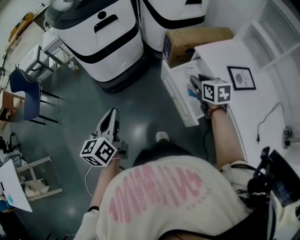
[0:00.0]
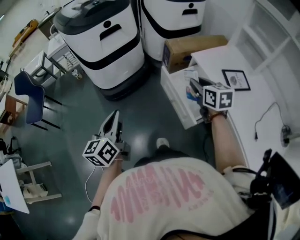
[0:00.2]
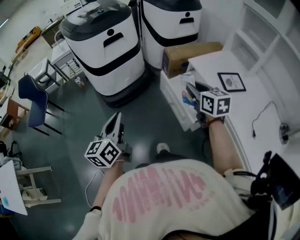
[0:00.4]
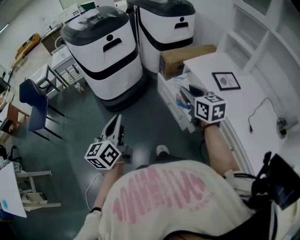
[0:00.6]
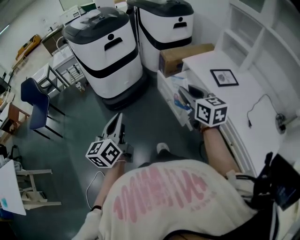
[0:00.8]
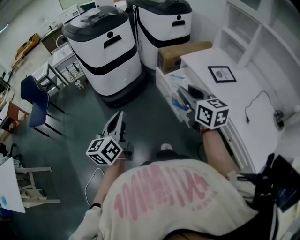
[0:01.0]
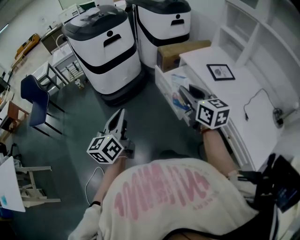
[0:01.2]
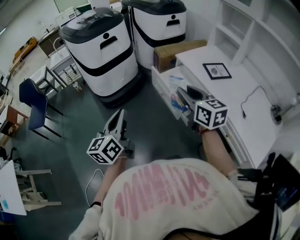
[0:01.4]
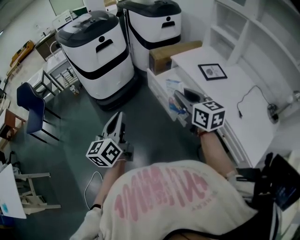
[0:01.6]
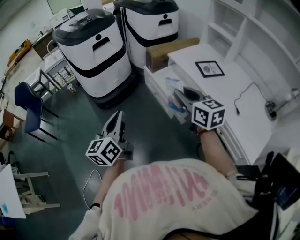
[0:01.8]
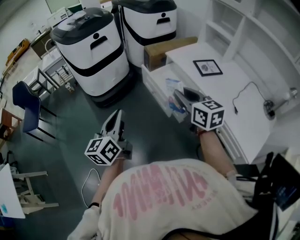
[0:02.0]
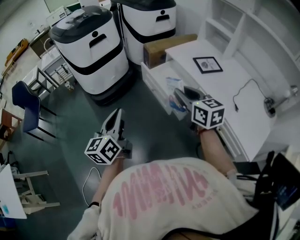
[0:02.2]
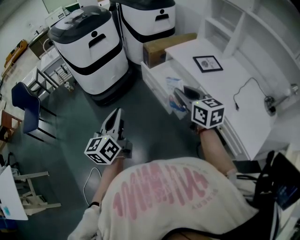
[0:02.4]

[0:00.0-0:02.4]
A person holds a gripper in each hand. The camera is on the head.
0:00.0 to 0:01.2: The right gripper goes about 30 cm backward and upward, and changes its angle by some 30 degrees, while the left gripper heads backward and upward, covering approximately 15 cm.
0:01.2 to 0:02.4: The grippers stay close to where they were, moving slightly.

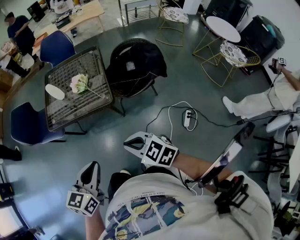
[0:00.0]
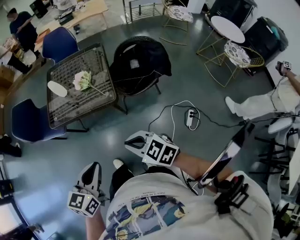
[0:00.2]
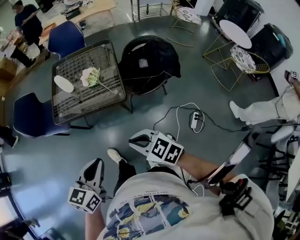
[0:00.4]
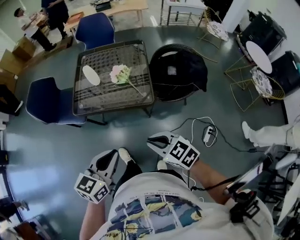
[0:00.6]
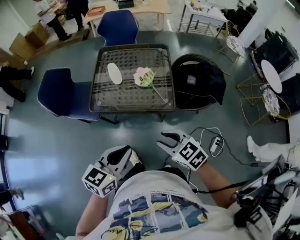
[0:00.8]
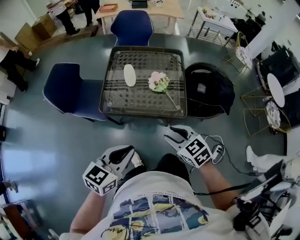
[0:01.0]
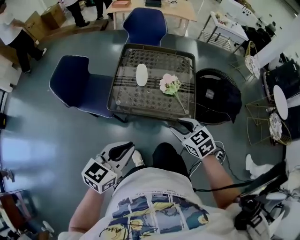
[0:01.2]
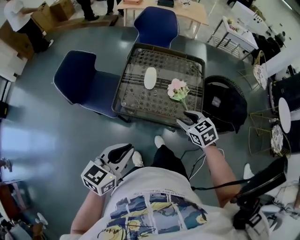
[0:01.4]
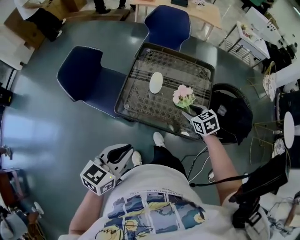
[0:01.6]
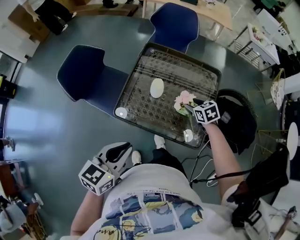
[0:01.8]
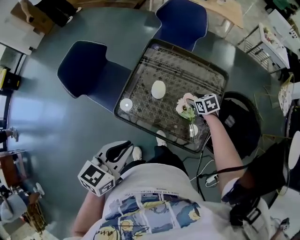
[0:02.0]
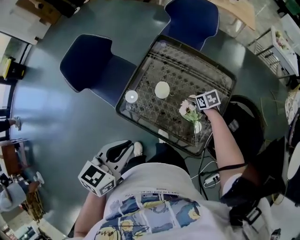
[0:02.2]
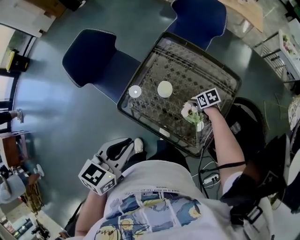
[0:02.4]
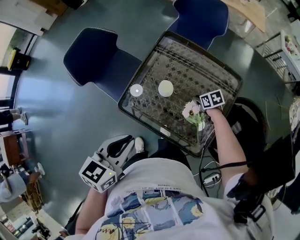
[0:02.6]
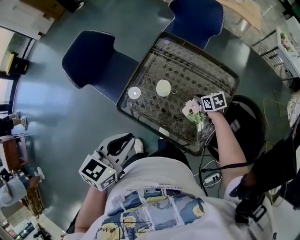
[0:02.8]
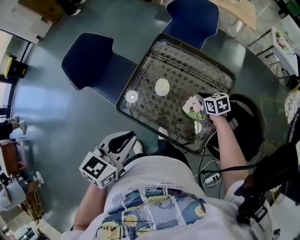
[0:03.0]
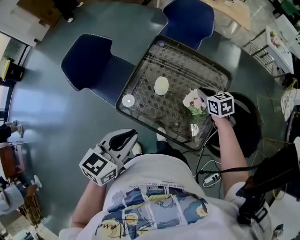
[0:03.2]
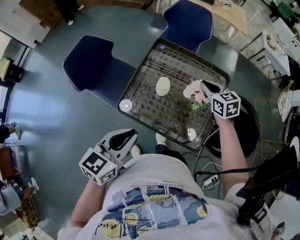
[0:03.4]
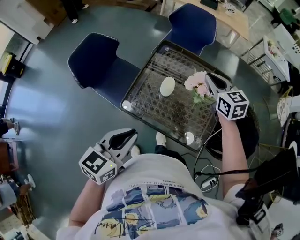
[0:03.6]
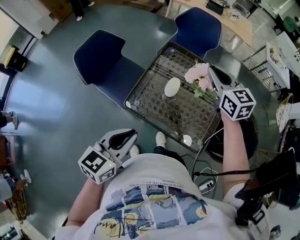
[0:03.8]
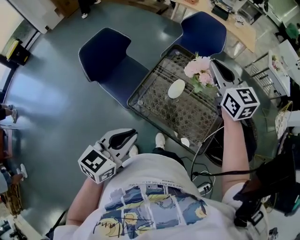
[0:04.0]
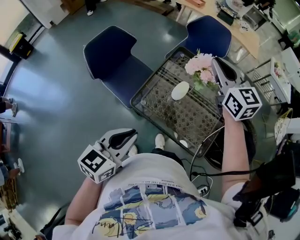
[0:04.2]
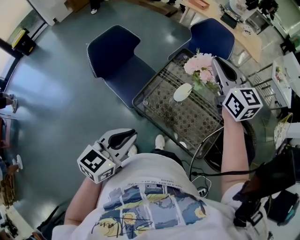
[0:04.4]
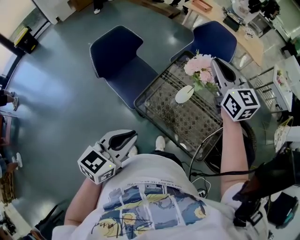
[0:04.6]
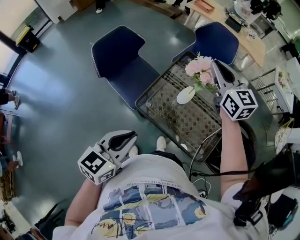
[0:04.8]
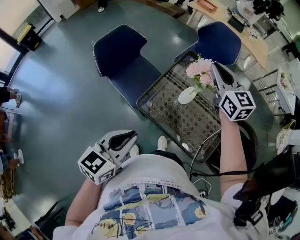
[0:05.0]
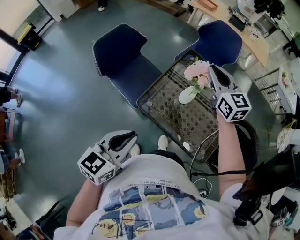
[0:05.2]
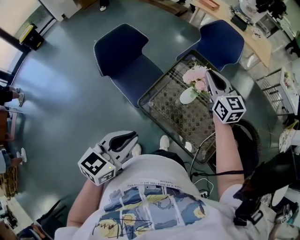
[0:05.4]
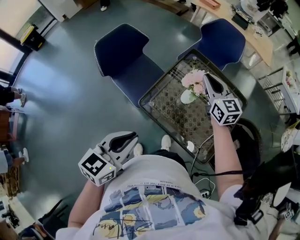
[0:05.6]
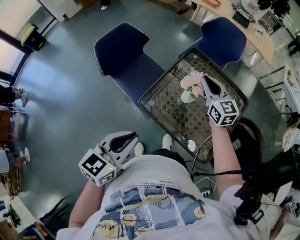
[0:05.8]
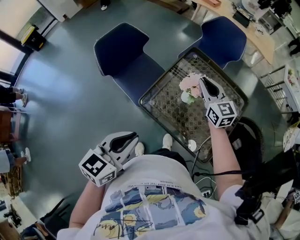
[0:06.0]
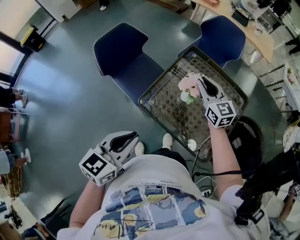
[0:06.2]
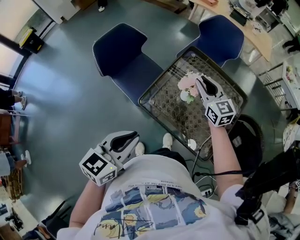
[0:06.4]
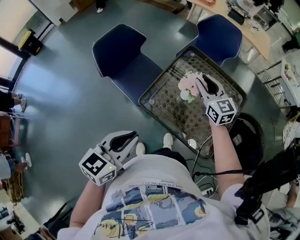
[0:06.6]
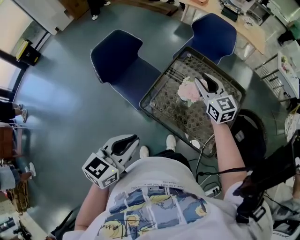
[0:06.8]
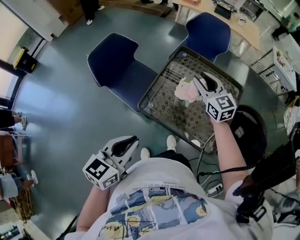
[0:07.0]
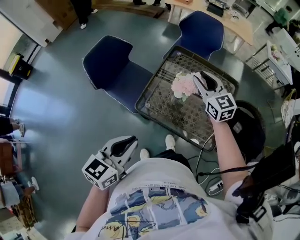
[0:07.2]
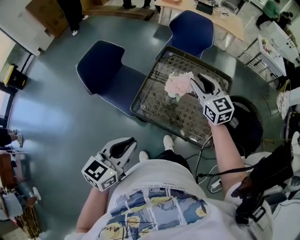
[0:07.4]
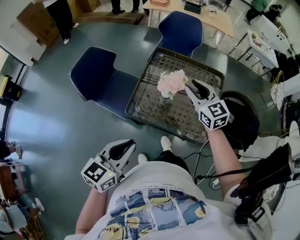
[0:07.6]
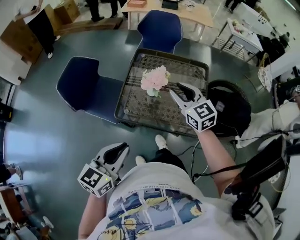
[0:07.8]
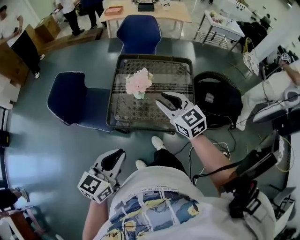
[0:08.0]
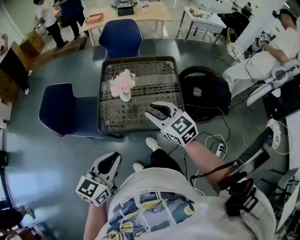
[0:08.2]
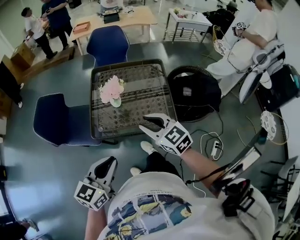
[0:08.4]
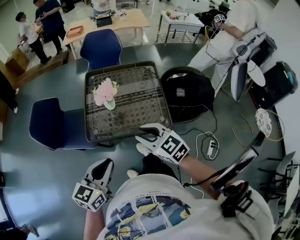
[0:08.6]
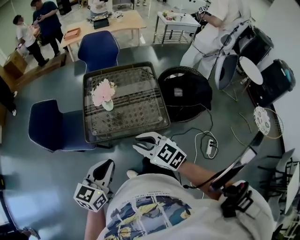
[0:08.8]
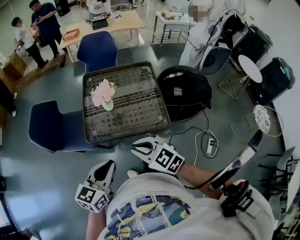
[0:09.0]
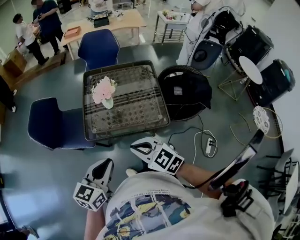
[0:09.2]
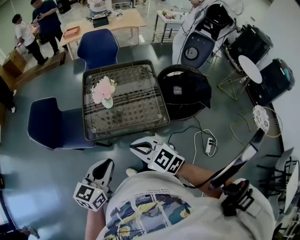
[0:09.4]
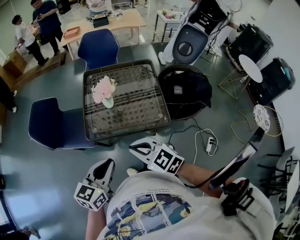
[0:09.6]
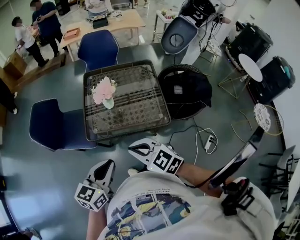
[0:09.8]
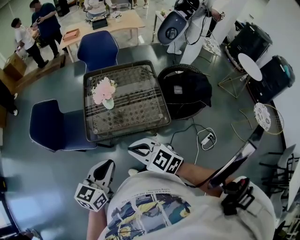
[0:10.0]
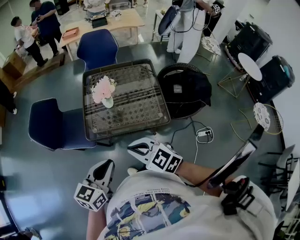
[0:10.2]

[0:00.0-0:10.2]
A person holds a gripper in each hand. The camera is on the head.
0:00.0 to 0:01.4: The left gripper heads to the left and forward, covering some 35 cm. Meanwhile the right gripper travels forward and to the left by approximately 40 cm, and opens its fingers.
0:01.4 to 0:03.0: The right gripper moves about 30 cm, and closes up; the left gripper moves about 20 cm.
0:03.0 to 0:04.4: The left gripper travels to the left and backward by some 10 cm, while the right gripper shifts roughly 40 cm upward and to the left, and tilts its fingers approximately 40 degrees upward.
0:04.4 to 0:05.8: The right gripper is displaced downward by about 15 cm.
0:05.8 to 0:07.2: The right gripper changes place by approximately 5 cm.
0:07.2 to 0:08.8: The left gripper shifts some 10 cm to the right, and turns by about 30 degrees. The right gripper goes approximately 30 cm backward.
0:08.8 to 0:10.2: The right gripper shifts by roughly 5 cm.

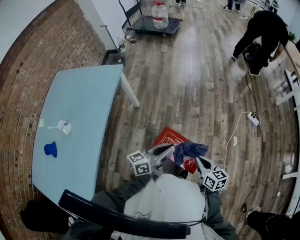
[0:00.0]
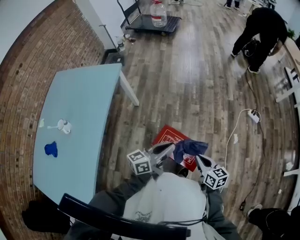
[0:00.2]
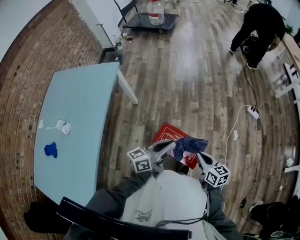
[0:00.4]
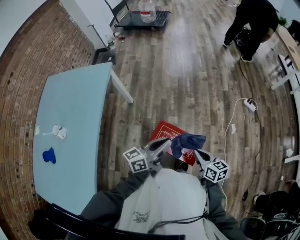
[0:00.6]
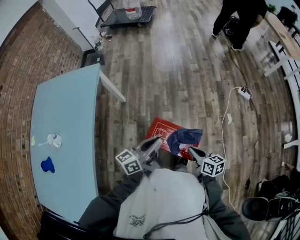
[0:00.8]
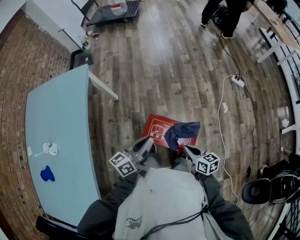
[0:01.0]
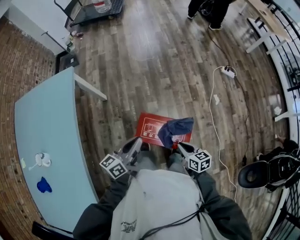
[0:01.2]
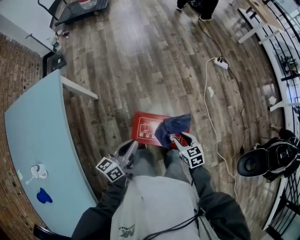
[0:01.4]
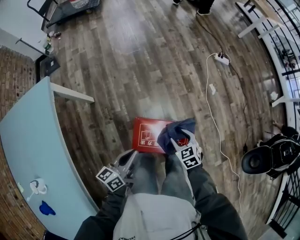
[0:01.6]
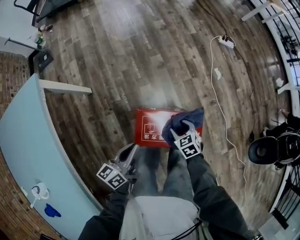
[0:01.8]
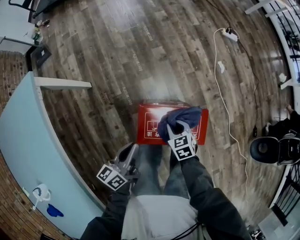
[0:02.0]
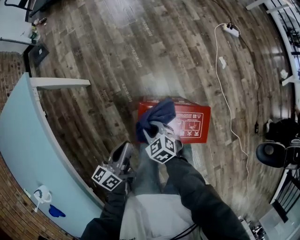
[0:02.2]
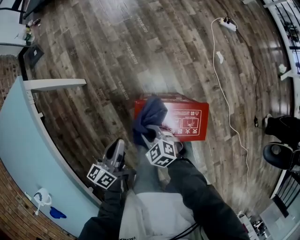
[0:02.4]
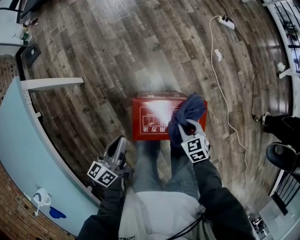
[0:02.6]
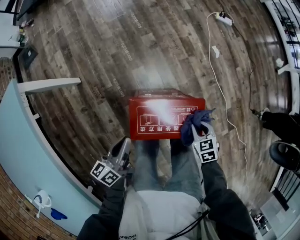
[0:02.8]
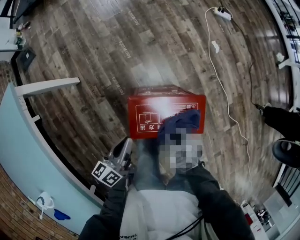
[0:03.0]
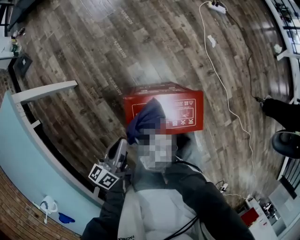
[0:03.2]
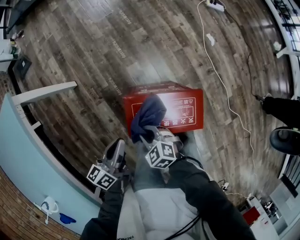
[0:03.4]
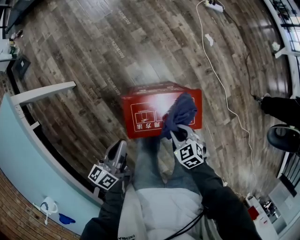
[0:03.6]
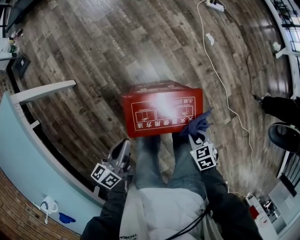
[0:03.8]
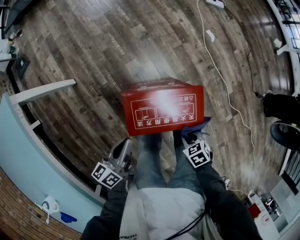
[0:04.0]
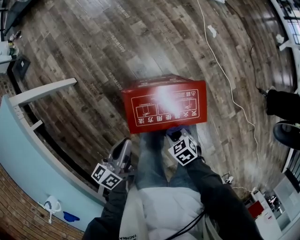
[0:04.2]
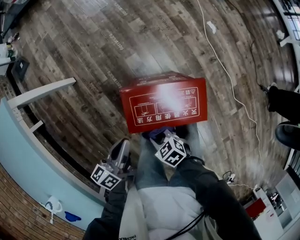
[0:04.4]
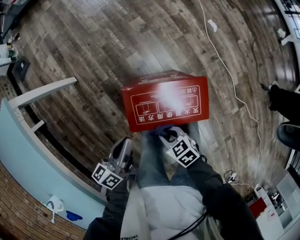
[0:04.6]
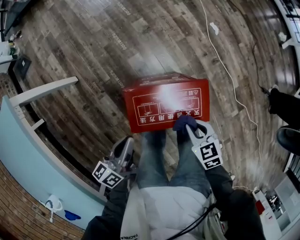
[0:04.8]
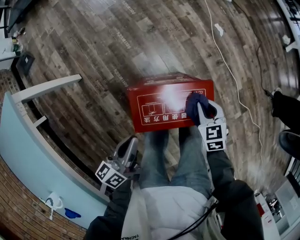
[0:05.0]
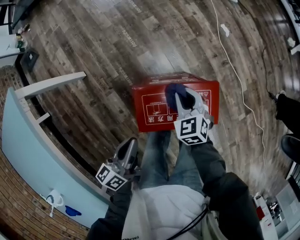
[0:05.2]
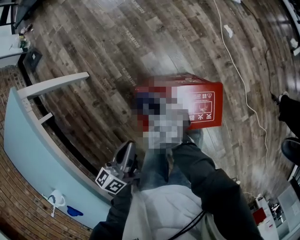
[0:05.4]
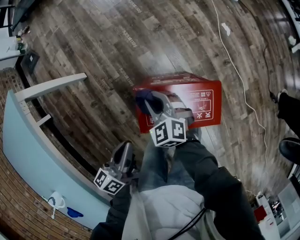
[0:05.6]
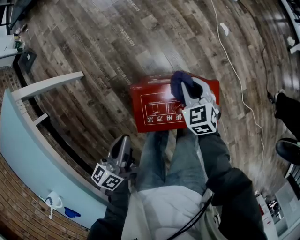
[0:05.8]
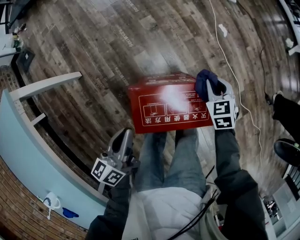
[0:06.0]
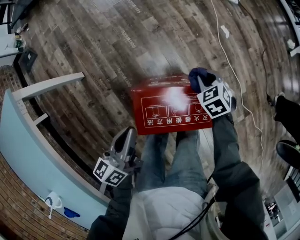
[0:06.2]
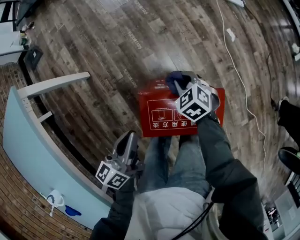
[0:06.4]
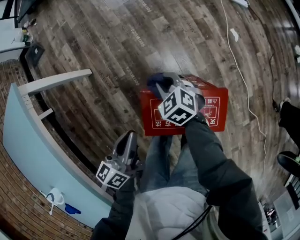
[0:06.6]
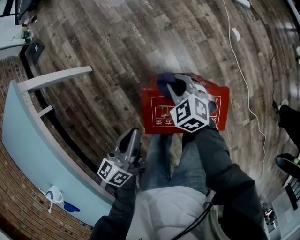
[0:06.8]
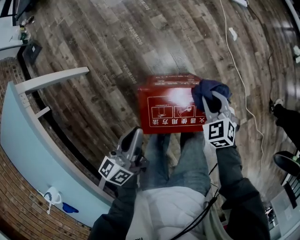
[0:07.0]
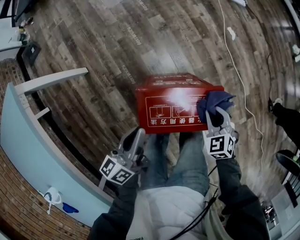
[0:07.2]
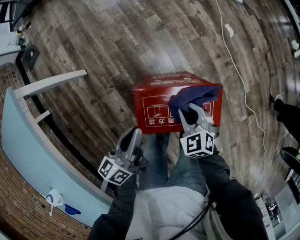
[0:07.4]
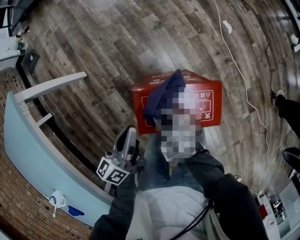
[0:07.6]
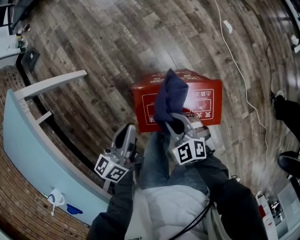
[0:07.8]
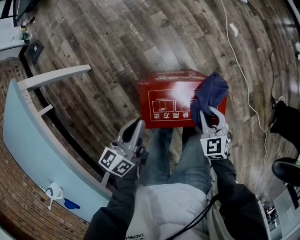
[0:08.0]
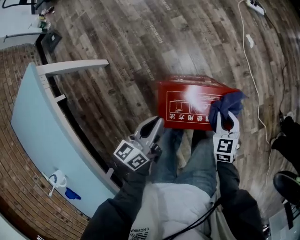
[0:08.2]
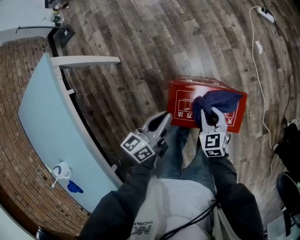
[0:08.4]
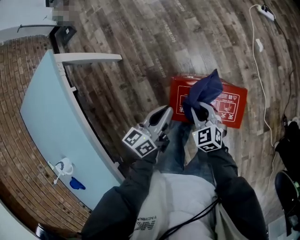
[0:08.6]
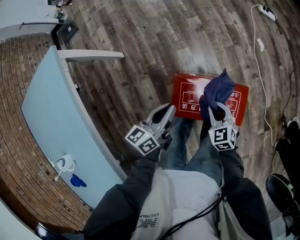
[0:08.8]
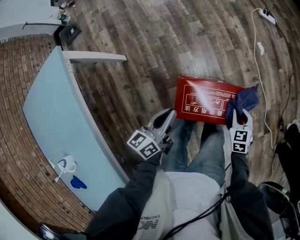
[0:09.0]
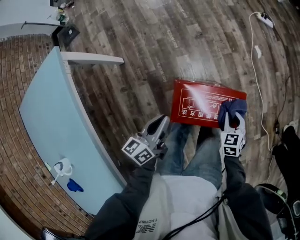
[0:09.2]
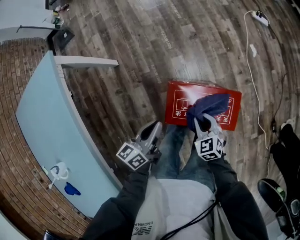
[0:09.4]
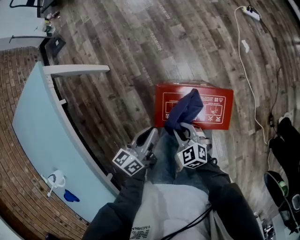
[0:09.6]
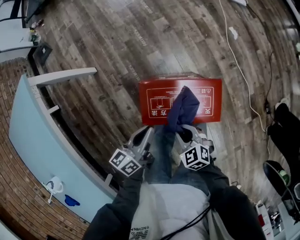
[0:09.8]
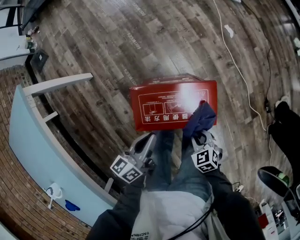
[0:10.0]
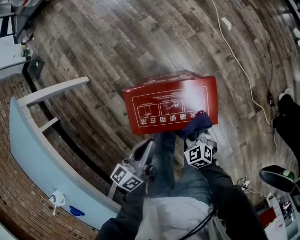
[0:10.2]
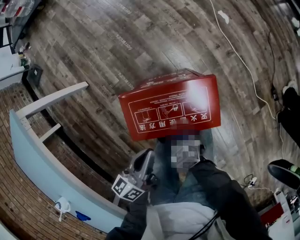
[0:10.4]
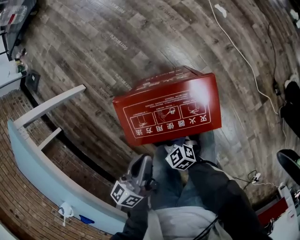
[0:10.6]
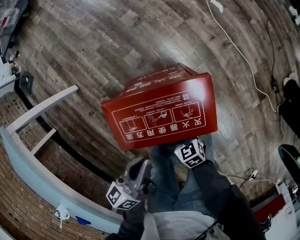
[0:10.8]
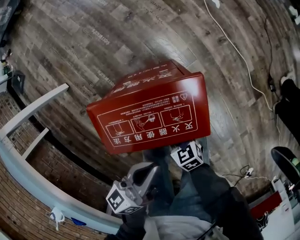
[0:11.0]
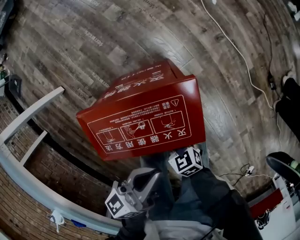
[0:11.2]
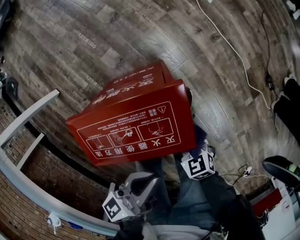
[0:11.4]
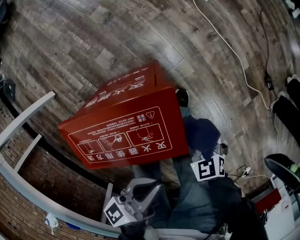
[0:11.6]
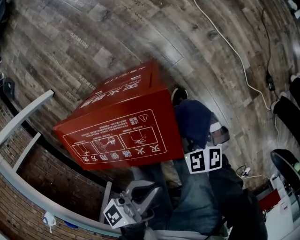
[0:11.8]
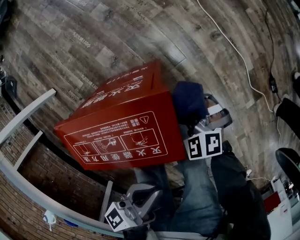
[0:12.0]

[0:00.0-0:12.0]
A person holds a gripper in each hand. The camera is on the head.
0:00.0 to 0:01.6: The left gripper heads downward and to the left, covering about 20 cm; the right gripper shifts about 15 cm downward, turns by some 40 degrees, and opens up.
0:01.6 to 0:03.0: The left gripper shifts approximately 10 cm downward; the right gripper swings left and right, some 25 cm each way, with 2 reversals, and closes its fingers.
0:03.0 to 0:04.4: The right gripper changes place by roughly 10 cm, and swivels some 20 degrees.
0:04.4 to 0:06.0: The left gripper ends up roughly 5 cm from where it was, while the right gripper ends up some 35 cm from where it was, and rotates about 50 degrees.
0:06.0 to 0:07.6: The right gripper ends up approximately 25 cm from where it was, and rotates roughly 40 degrees.
0:07.6 to 0:09.0: The right gripper goes left and right, about 20 cm each way, reversing 2 times, and turns by about 30 degrees.
0:09.0 to 0:10.4: The left gripper heads to the right and backward, covering about 10 cm. Meanwhile the right gripper moves left and right over about 20 cm, changing direction 2 times, and rotates approximately 30 degrees.
0:10.4 to 0:12.0: The left gripper moves to the right, some 20 cm, while the right gripper shifts some 25 cm to the right and forward, and swivels some 30 degrees.
